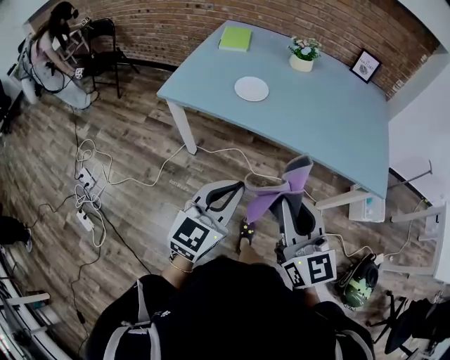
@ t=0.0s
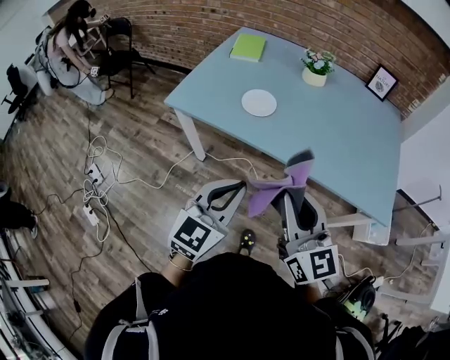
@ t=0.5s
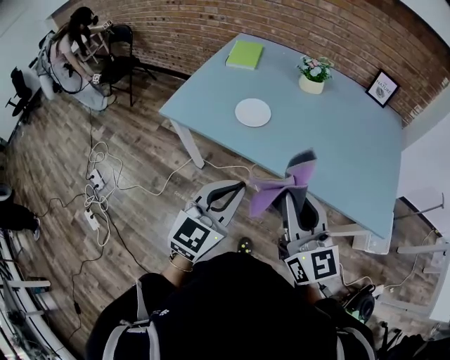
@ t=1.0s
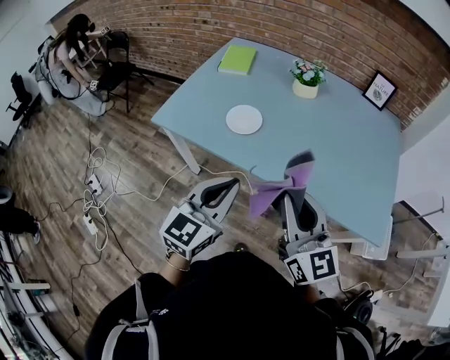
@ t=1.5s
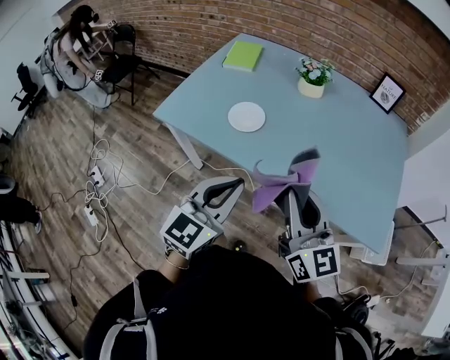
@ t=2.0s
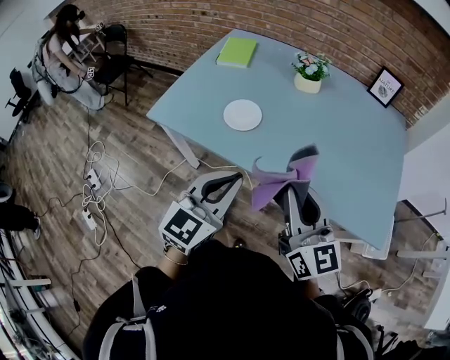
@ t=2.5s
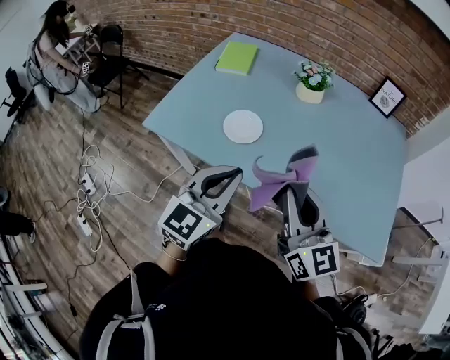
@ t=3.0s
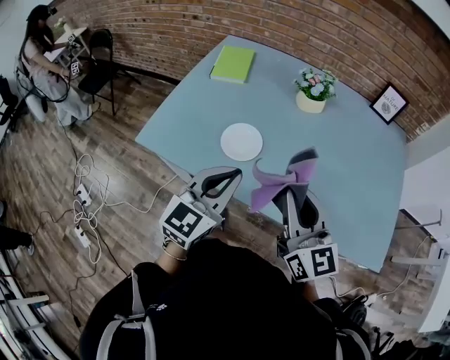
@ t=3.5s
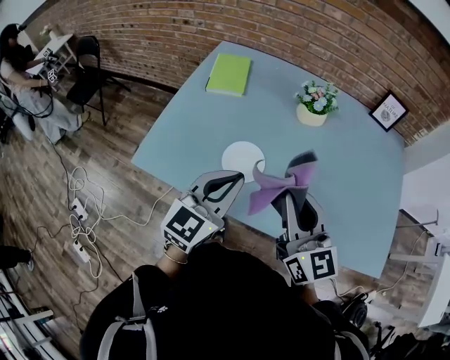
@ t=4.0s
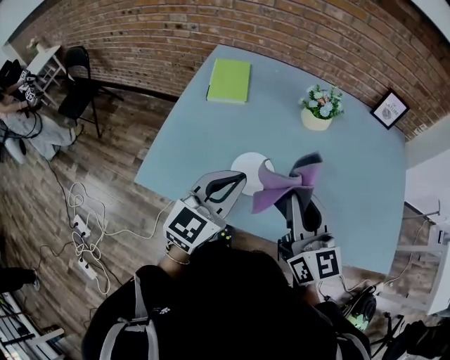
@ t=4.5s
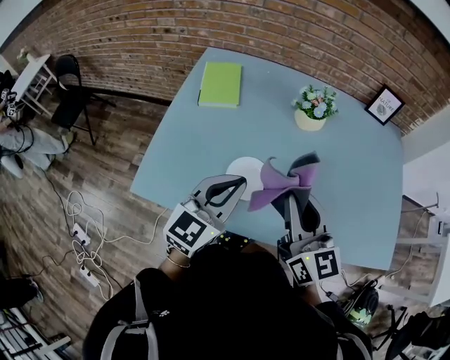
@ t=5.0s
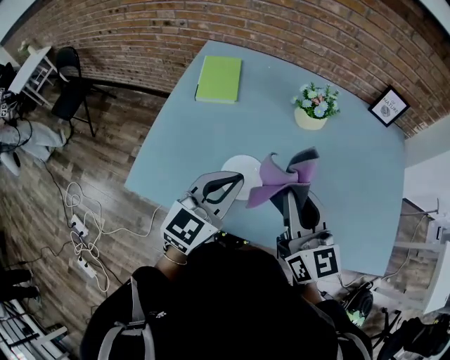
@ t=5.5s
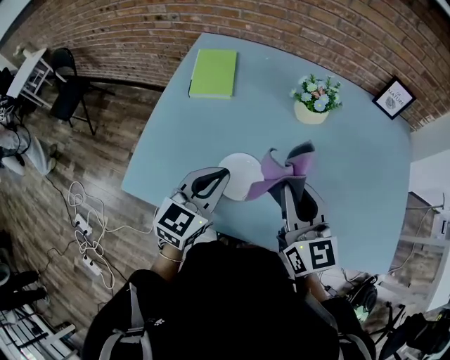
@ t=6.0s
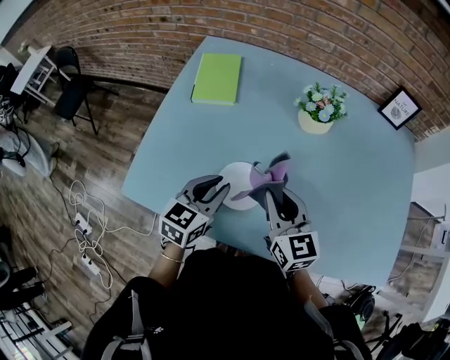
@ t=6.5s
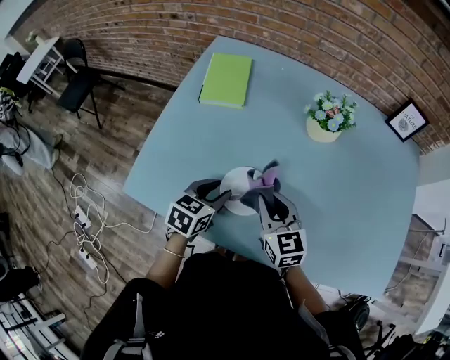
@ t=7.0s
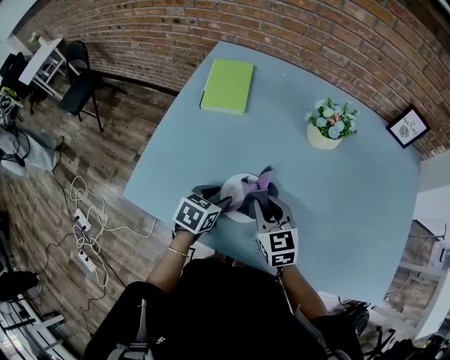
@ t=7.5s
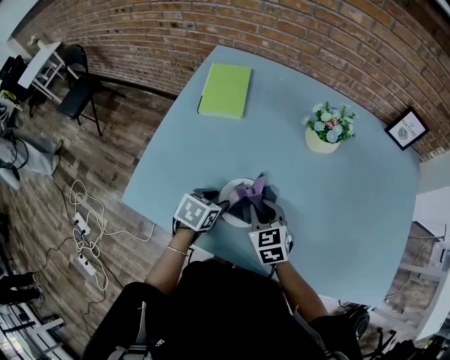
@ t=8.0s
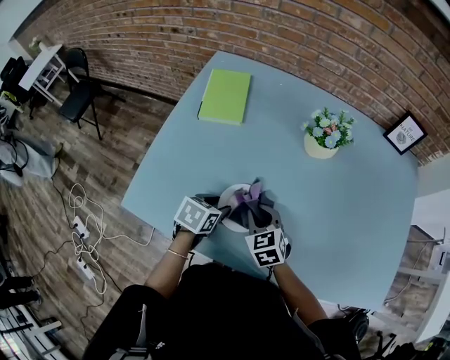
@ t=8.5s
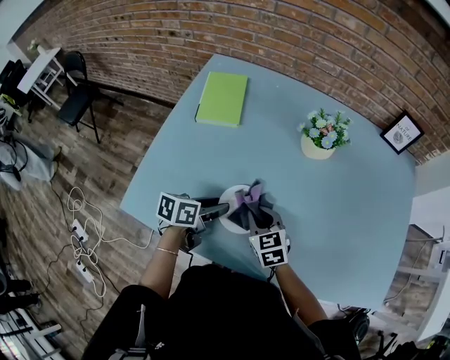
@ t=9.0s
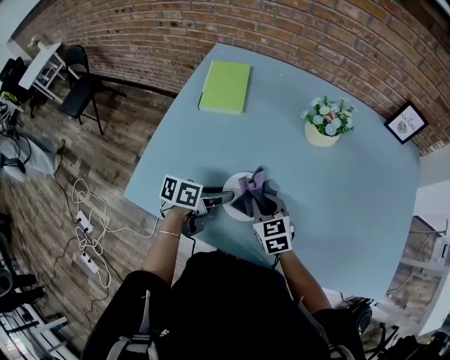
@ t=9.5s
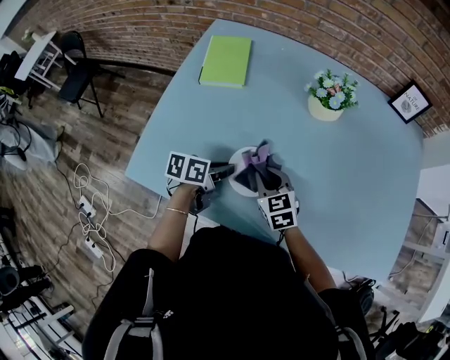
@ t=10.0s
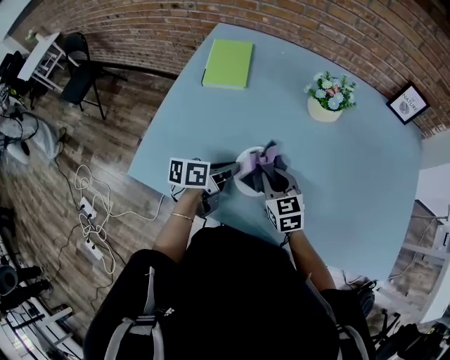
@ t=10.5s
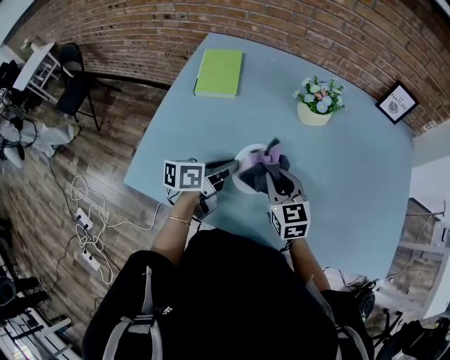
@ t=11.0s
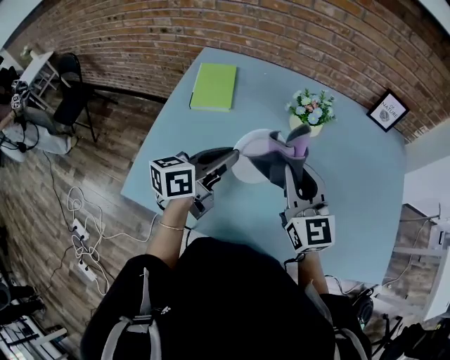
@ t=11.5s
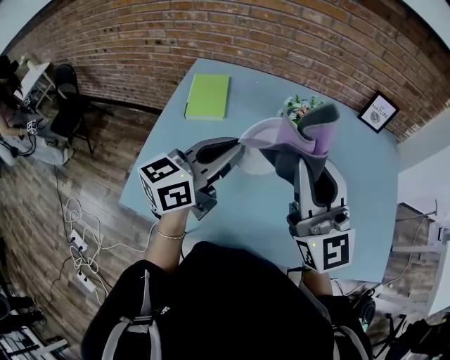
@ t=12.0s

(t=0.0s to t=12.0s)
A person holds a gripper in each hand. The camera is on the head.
t=0.0s - t=2.0s: Both grippers move forward and to the right, some 20 cm.
t=2.0s - t=4.0s: Both grippers move forward and to the left, some 25 cm.
t=4.0s - t=6.0s: The left gripper moves forward and downward, some 10 cm, while the right gripper goes about 10 cm forward.
t=6.0s - t=8.0s: The grippers both shift downward by roughly 20 cm. The left gripper tips its fingers downward by about 40 degrees, and opens up. Meanwhile the right gripper angles its fingers downward, by approximately 30 degrees.
t=8.0s - t=10.0s: The left gripper changes its angle by about 30 degrees, and closes its fingers.
t=10.0s - t=12.0s: The grippers both shift upward by about 35 cm. The right gripper points its fingers roughly 60 degrees further upward. The left gripper tilts its fingers some 40 degrees upward.

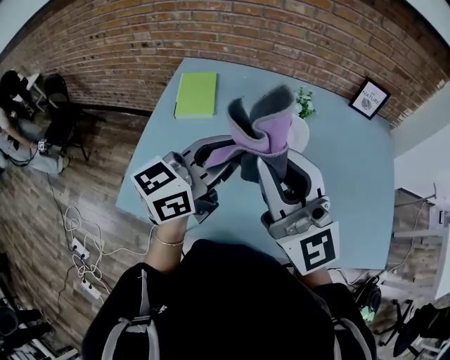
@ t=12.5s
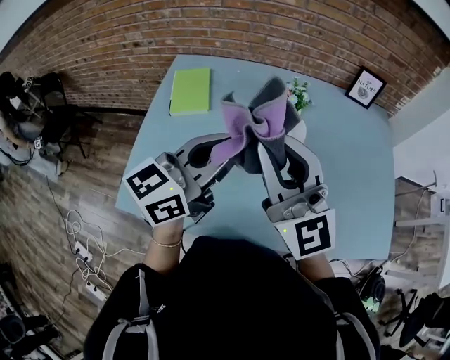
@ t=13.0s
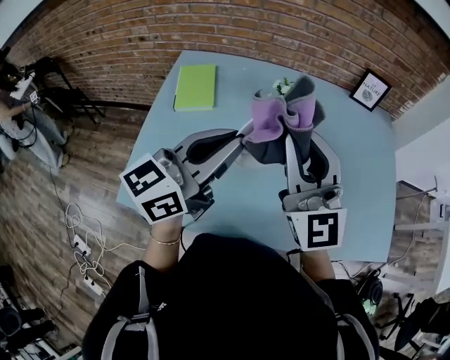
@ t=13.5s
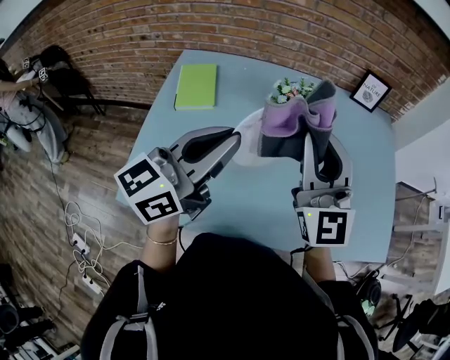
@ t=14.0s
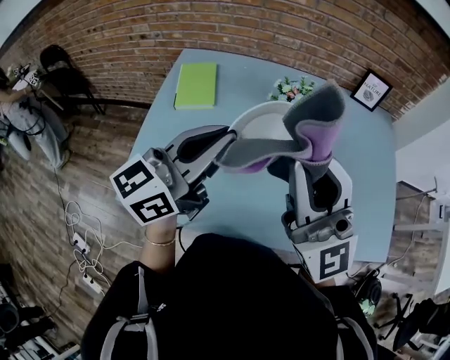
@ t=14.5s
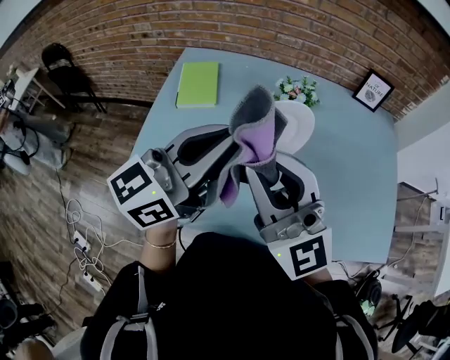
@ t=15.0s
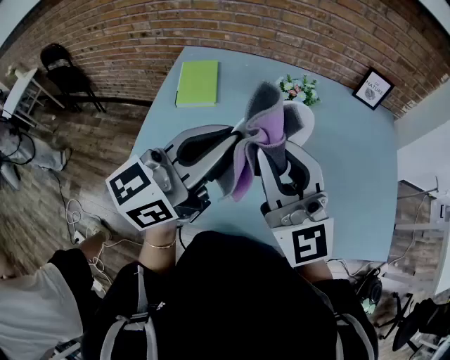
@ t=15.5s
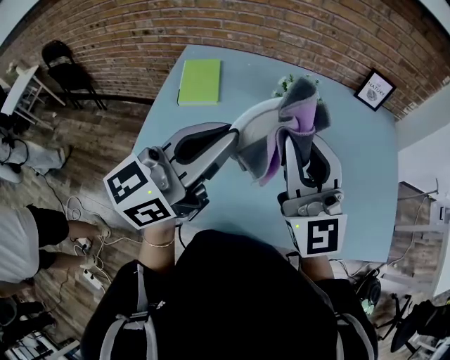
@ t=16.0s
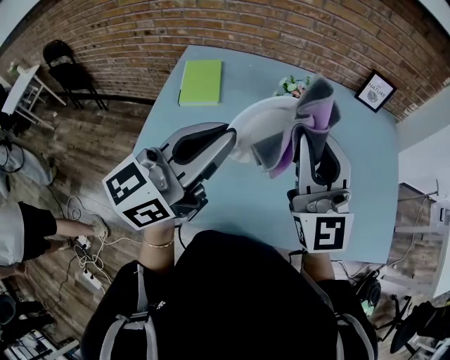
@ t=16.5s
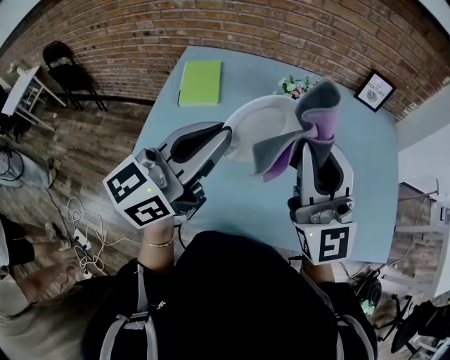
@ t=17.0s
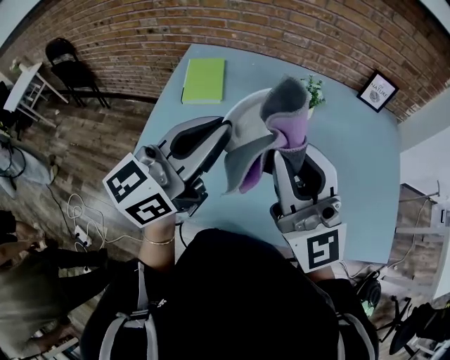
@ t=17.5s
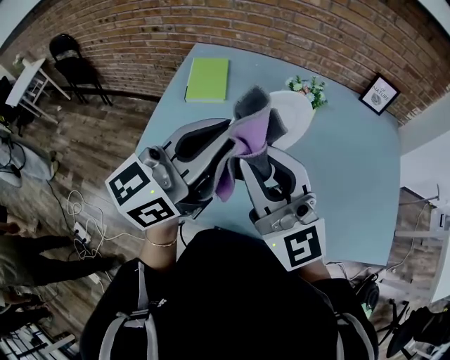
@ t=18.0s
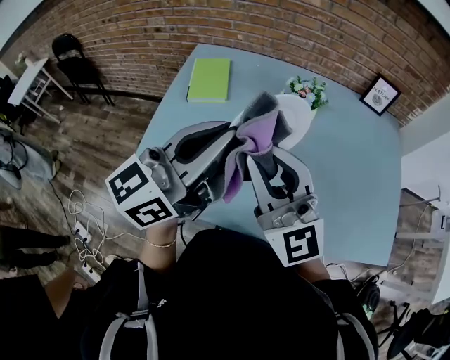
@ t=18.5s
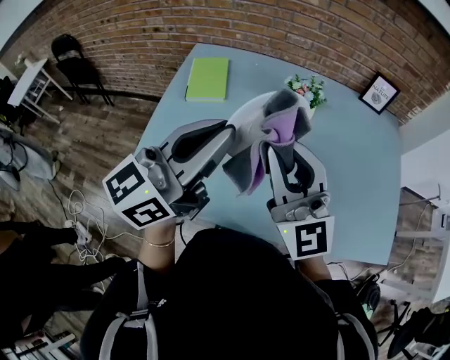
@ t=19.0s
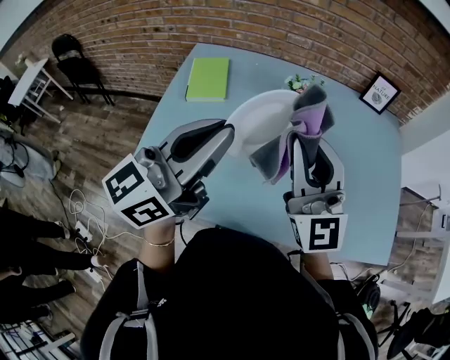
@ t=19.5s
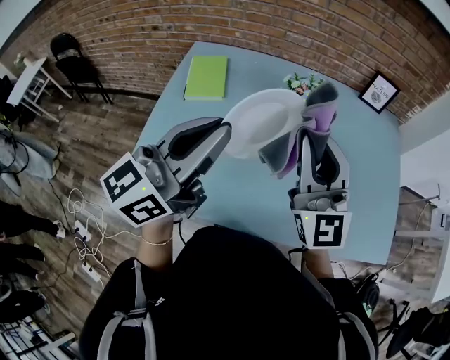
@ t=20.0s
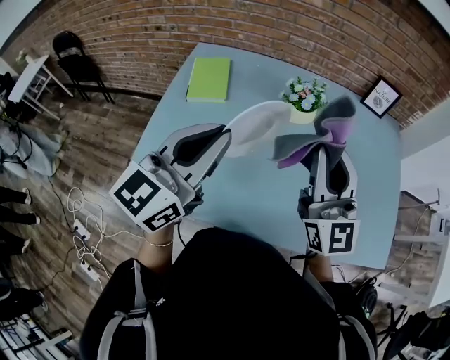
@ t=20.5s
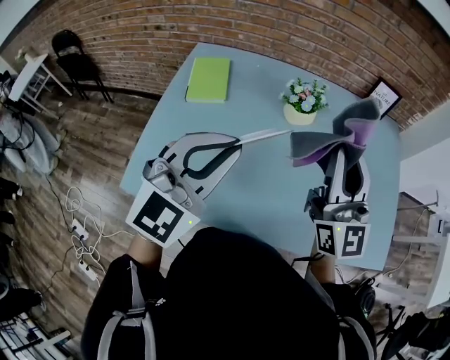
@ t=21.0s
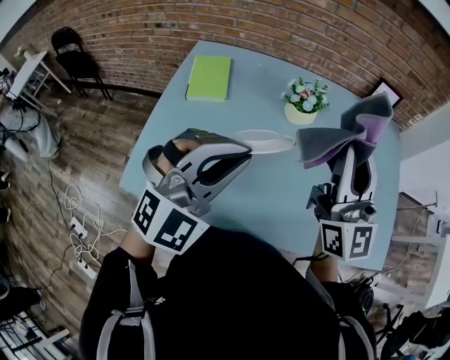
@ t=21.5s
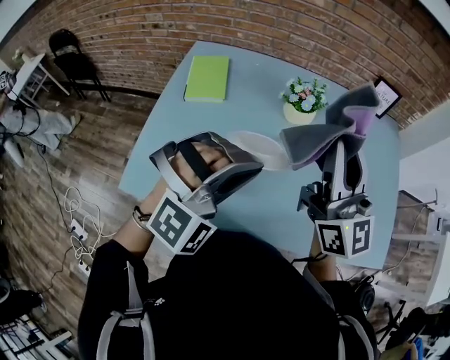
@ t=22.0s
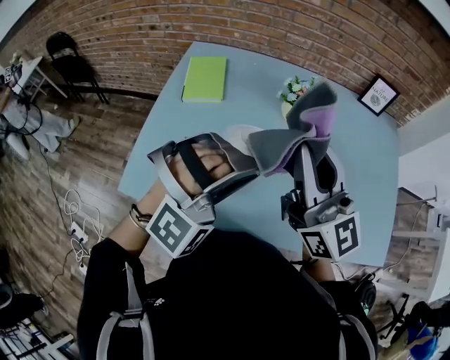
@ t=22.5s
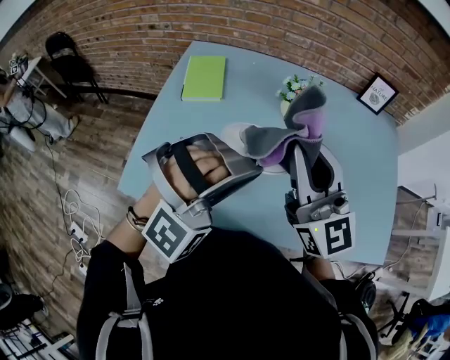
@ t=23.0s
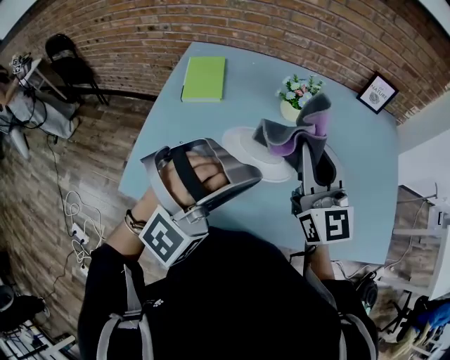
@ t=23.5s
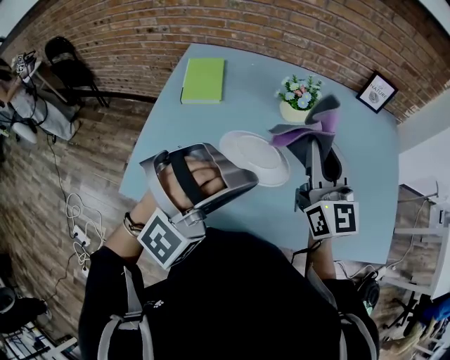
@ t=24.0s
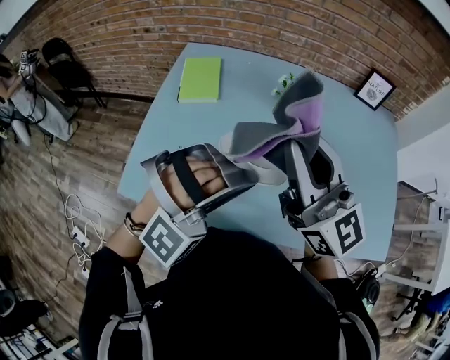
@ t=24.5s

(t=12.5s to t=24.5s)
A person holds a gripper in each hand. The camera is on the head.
t=12.5s - t=14.5s: The right gripper travels forward and back again, some 5 cm each way.
t=14.5s - t=16.5s: The right gripper travels forward by roughly 5 cm.
t=16.5s - t=18.5s: The right gripper heads to the left and backward, covering some 10 cm.
t=18.5s - t=20.5s: The right gripper shifts approximately 15 cm to the right and forward, and swivels approximately 20 degrees.
t=20.5s - t=22.5s: The right gripper goes about 5 cm to the left; the left gripper travels to the right and downward by about 10 cm, and rolls clockwise, seen from behind, by about 90 degrees.
t=22.5s - t=24.5s: The right gripper travels downward and back again, some 5 cm each way.

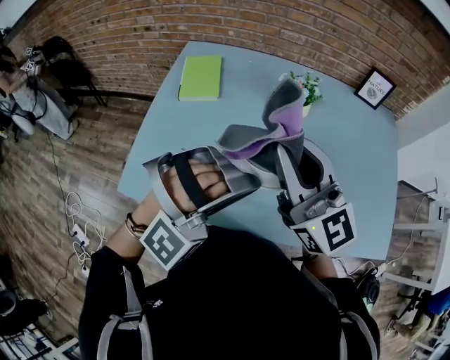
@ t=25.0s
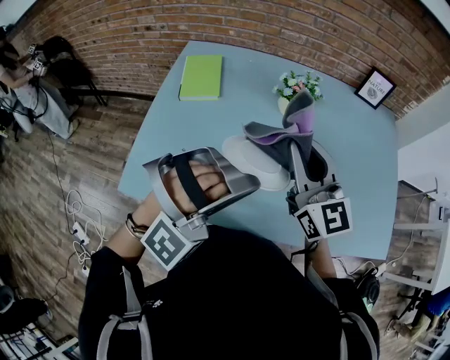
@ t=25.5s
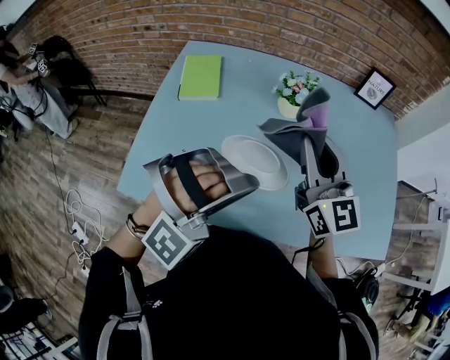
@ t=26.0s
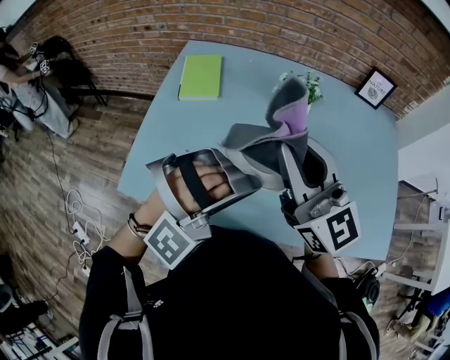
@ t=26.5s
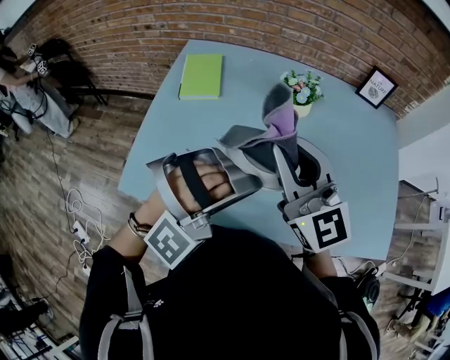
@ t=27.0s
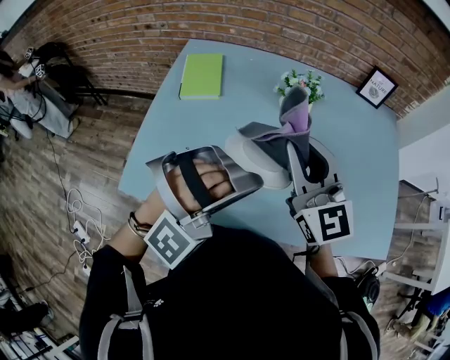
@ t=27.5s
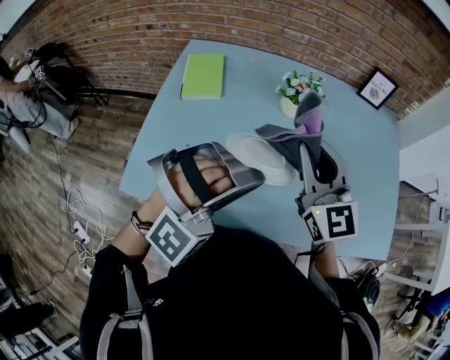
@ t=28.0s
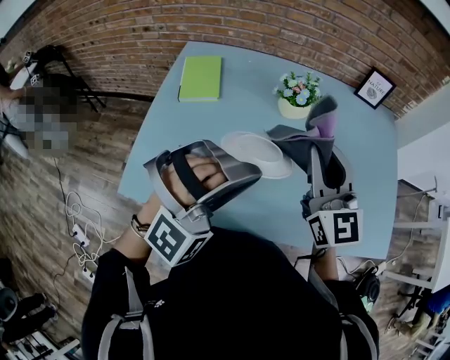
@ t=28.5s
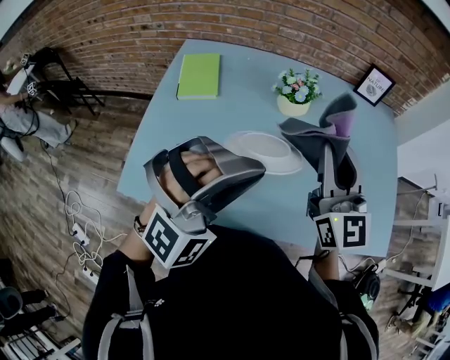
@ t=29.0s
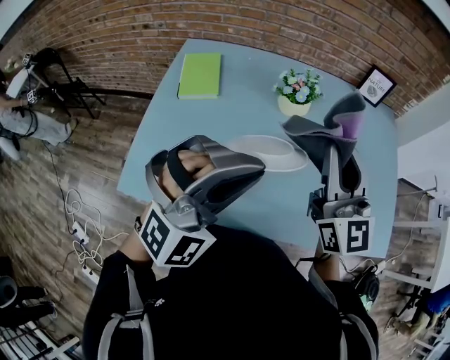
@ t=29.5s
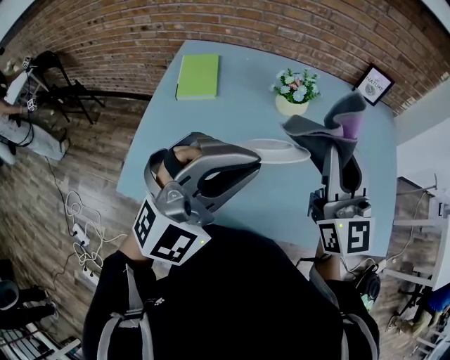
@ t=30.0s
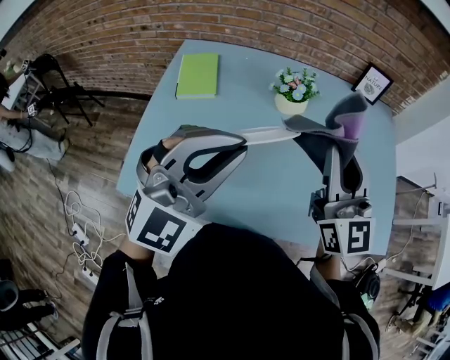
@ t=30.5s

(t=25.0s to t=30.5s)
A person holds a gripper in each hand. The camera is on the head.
t=27.0s - t=28.5s: The right gripper heads to the right, covering some 5 cm.
t=28.5s - t=30.5s: The right gripper shifts by roughly 5 cm, while the left gripper is displaced upward by approximately 5 cm, and rotates about 40 degrees.
